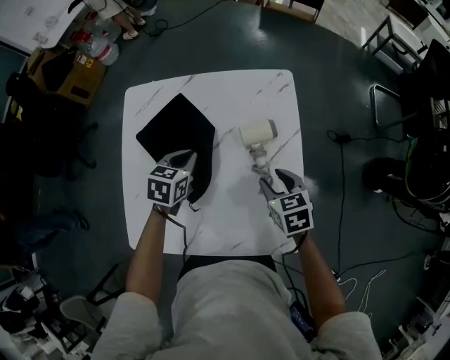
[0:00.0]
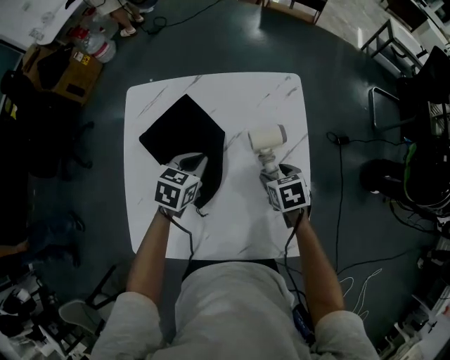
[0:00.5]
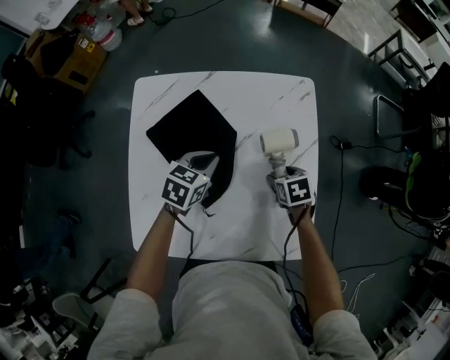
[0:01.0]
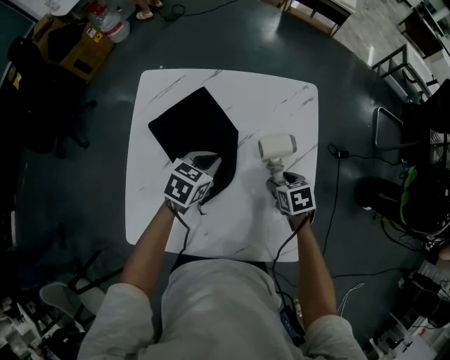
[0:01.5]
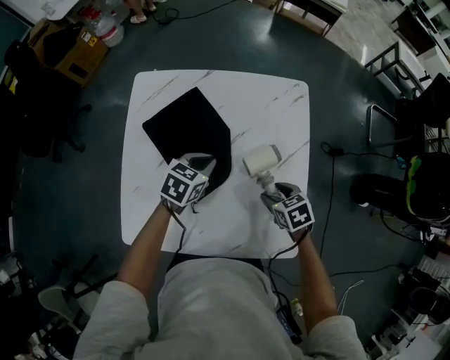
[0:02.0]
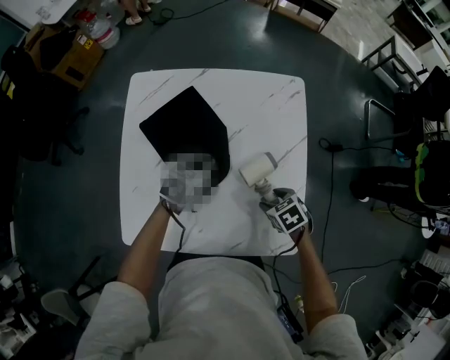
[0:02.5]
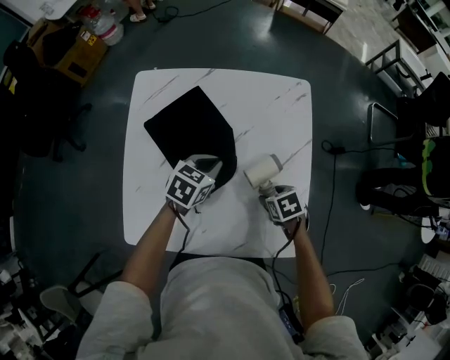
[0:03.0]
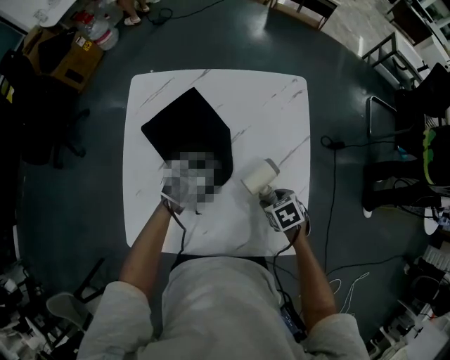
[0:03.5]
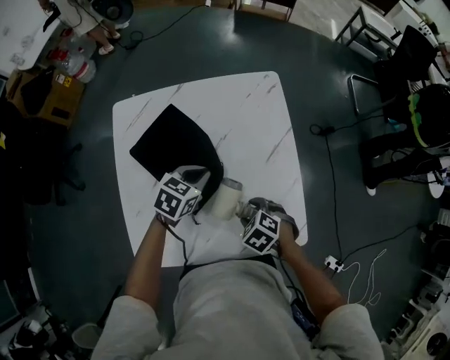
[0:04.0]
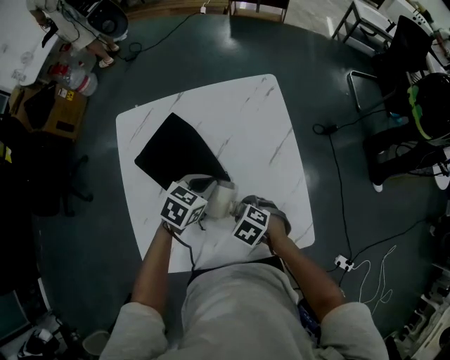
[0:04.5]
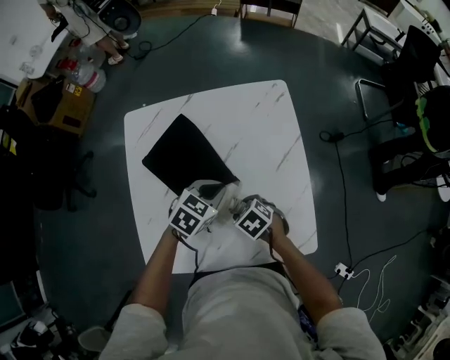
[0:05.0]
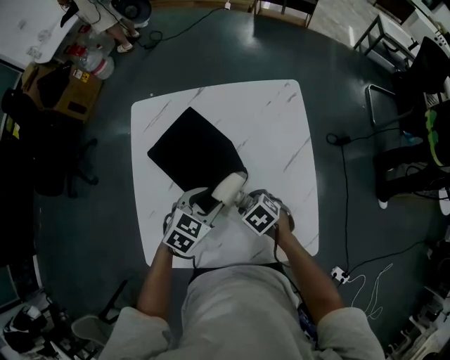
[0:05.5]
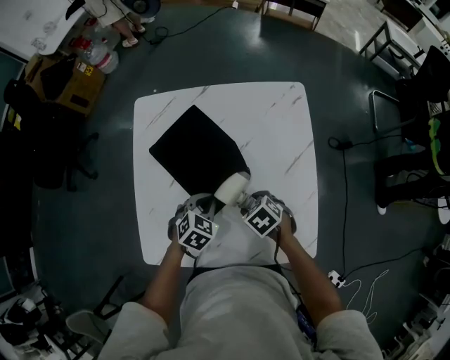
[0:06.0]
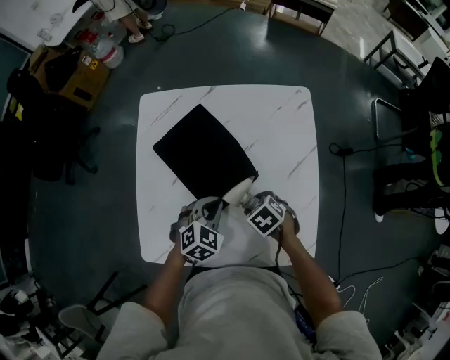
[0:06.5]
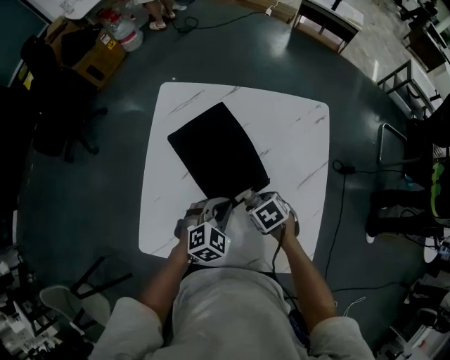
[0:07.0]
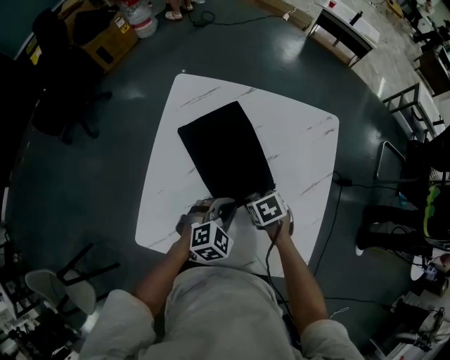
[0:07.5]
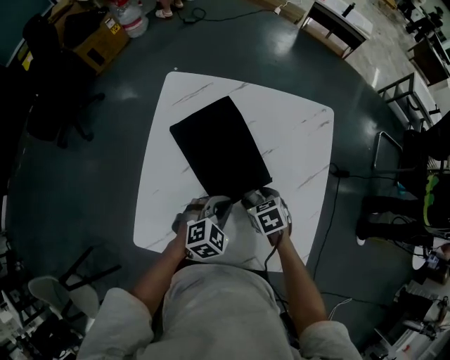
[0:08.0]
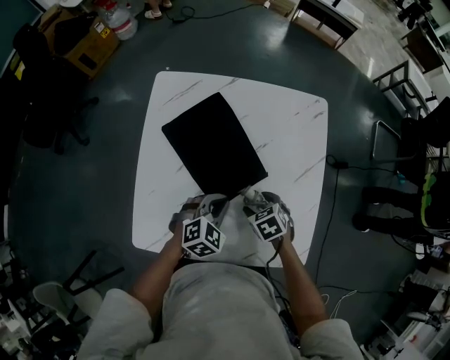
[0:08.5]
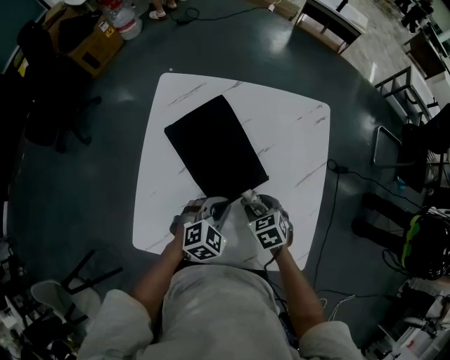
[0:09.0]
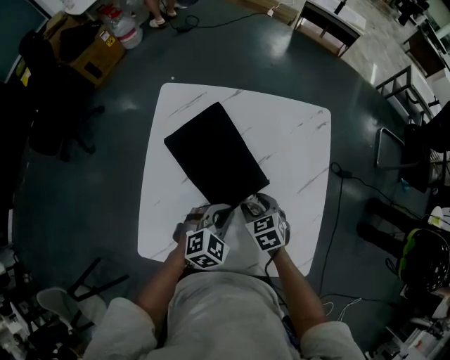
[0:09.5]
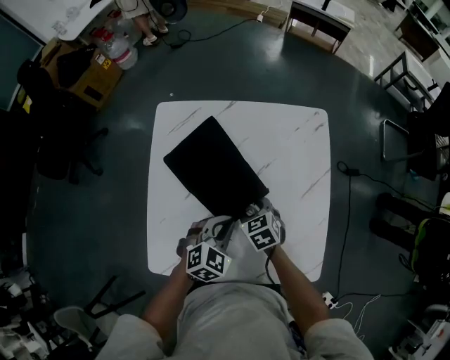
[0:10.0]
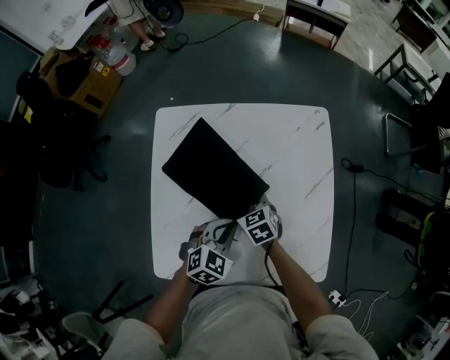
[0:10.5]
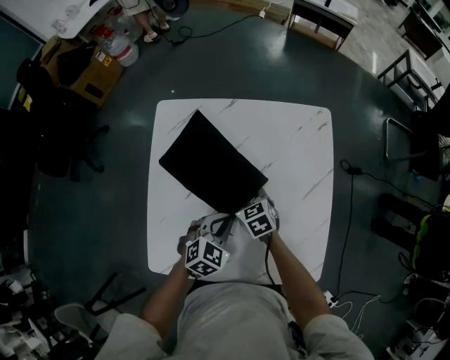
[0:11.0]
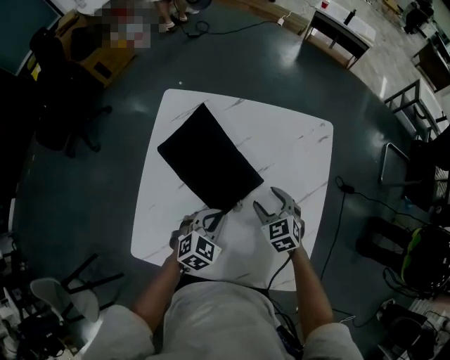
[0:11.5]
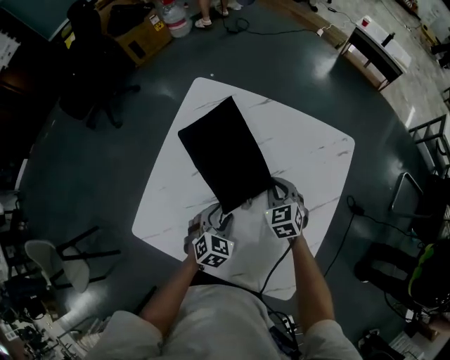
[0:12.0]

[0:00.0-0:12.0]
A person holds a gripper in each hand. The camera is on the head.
0:00.0 to 0:02.0: The right gripper shifts roughly 5 cm downward.
0:02.0 to 0:04.0: The right gripper moves to the left and backward, some 10 cm, and rotates some 20 degrees.
0:04.0 to 0:06.0: The left gripper ends up some 10 cm from where it was, changes its angle by some 20 degrees, and opens, then closes once more. Meanwhile the right gripper moves about 5 cm.
0:06.0 to 0:08.0: The right gripper shifts by approximately 5 cm.
0:08.0 to 0:10.0: The right gripper changes place by about 5 cm.
0:10.0 to 0:12.0: The right gripper travels forward and to the right by roughly 10 cm, swivels approximately 20 degrees, and closes up. Meanwhile the left gripper goes about 5 cm downward, turns by approximately 30 degrees, and opens its fingers.

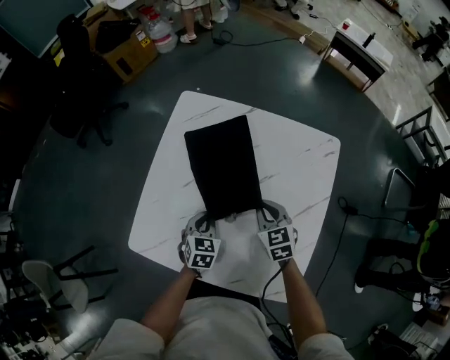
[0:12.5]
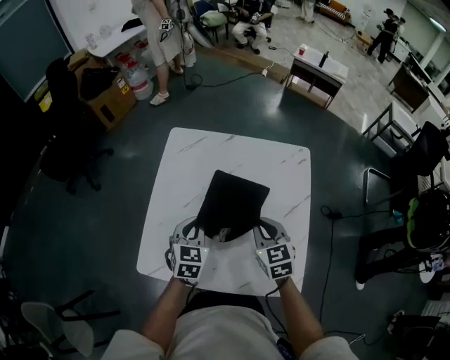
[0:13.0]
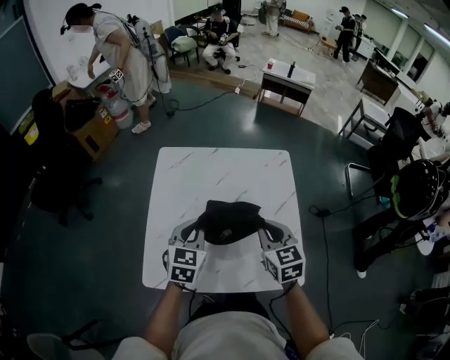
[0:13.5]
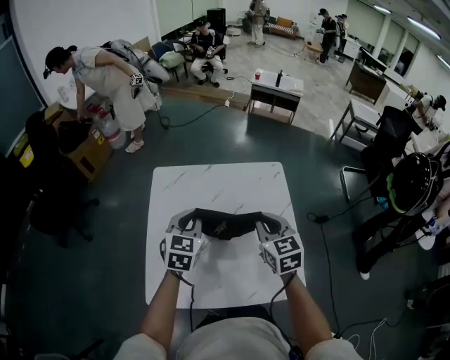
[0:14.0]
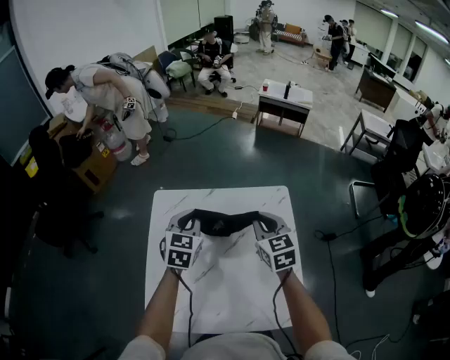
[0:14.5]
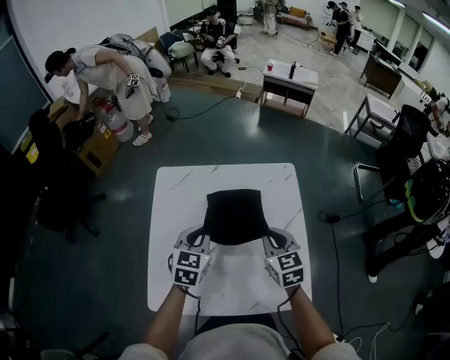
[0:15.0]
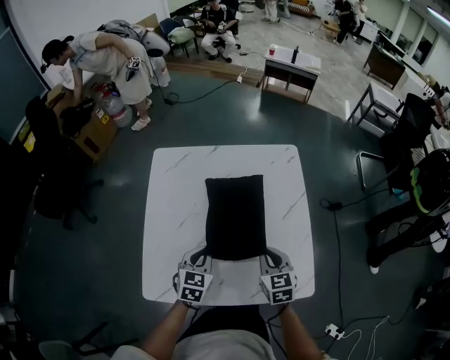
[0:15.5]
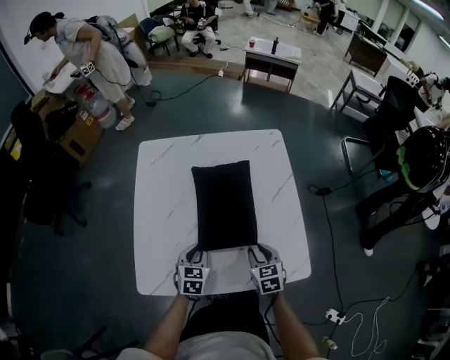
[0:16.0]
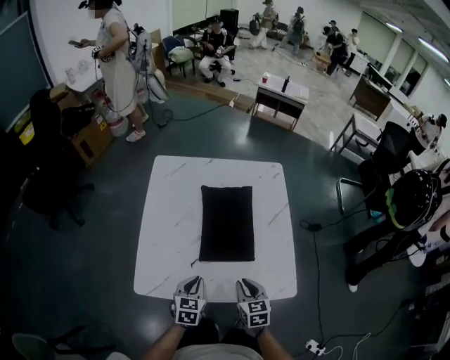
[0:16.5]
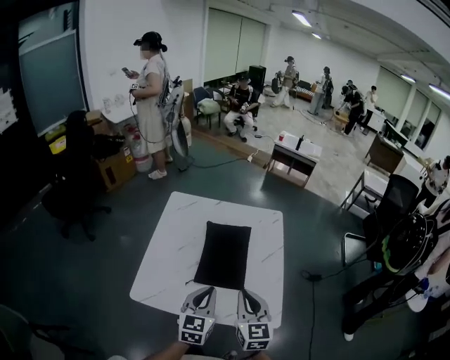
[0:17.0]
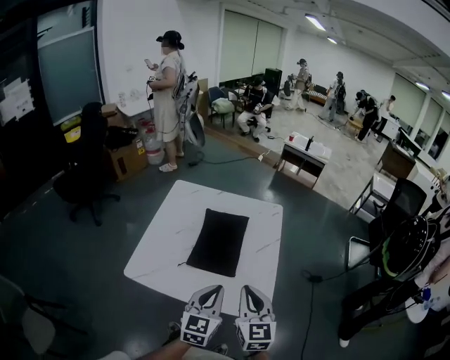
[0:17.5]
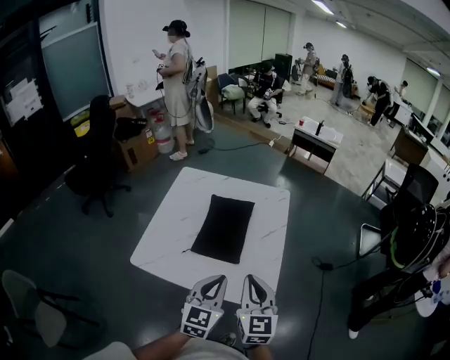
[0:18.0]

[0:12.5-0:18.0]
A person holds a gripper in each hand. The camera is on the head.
0:12.5 to 0:14.5: The grippers both shift upward by roughly 25 cm. The left gripper turns by some 30 degrees. Meanwhile the right gripper turns by roughly 30 degrees.
0:14.5 to 0:16.0: Both grippers travel together backward and downward, about 35 cm. The right gripper swivels about 20 degrees.
0:16.0 to 0:18.0: The right gripper shifts approximately 30 cm upward, and tips its fingers upward by some 30 degrees; the left gripper travels upward, backward and to the right by about 35 cm, and swivels about 30 degrees.

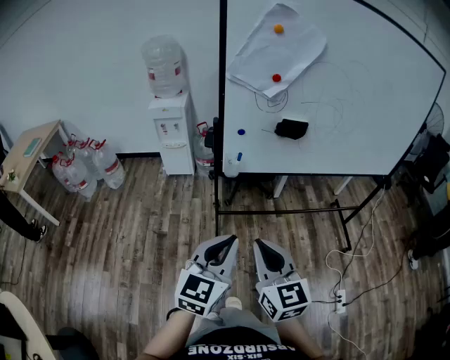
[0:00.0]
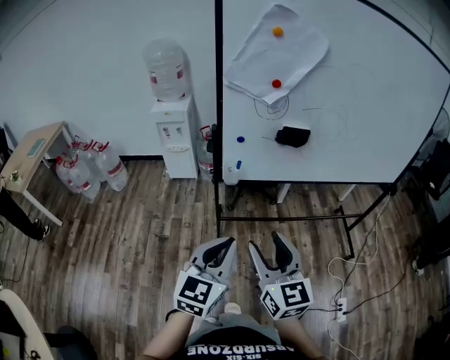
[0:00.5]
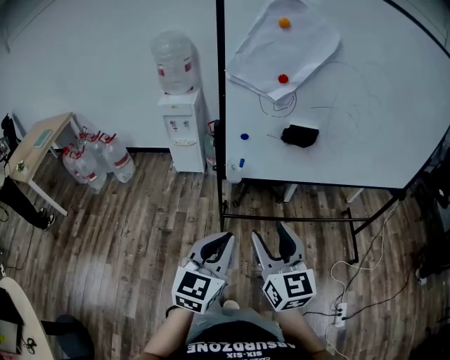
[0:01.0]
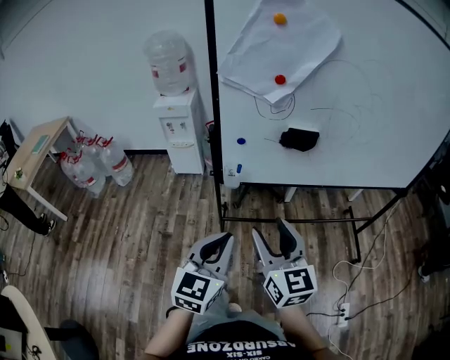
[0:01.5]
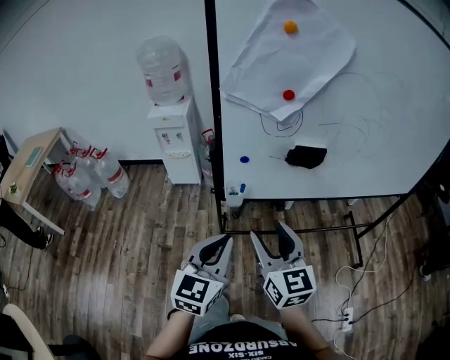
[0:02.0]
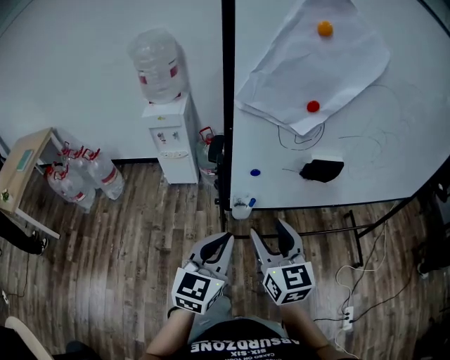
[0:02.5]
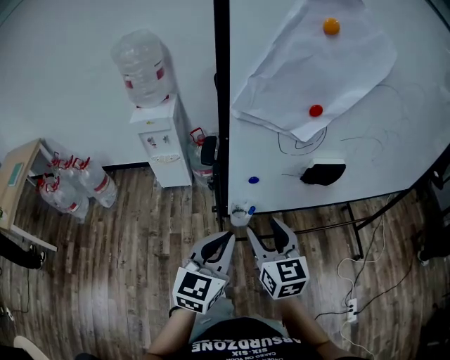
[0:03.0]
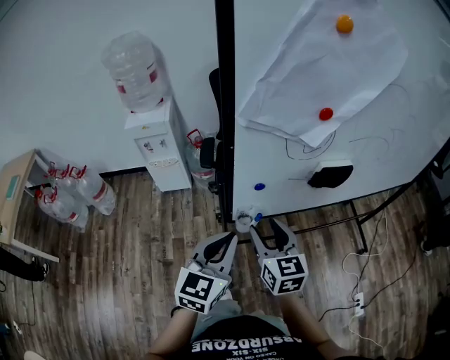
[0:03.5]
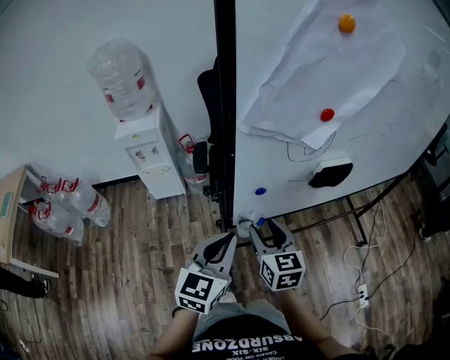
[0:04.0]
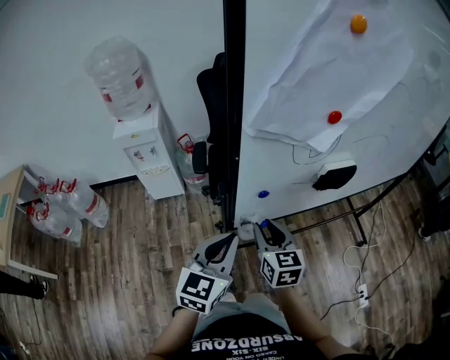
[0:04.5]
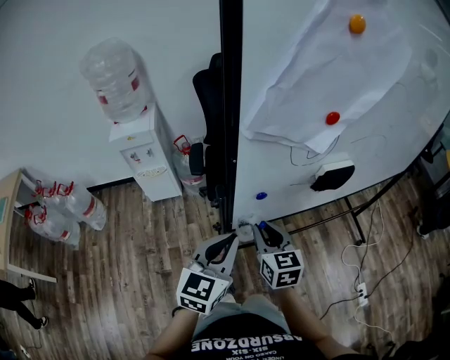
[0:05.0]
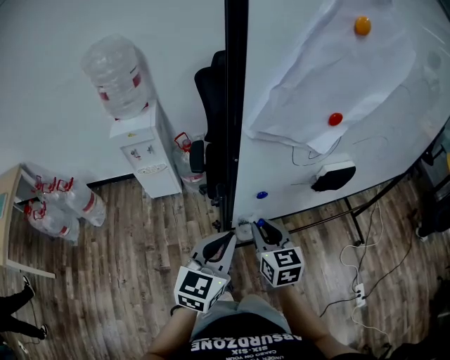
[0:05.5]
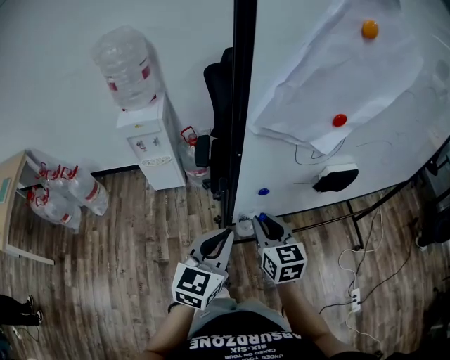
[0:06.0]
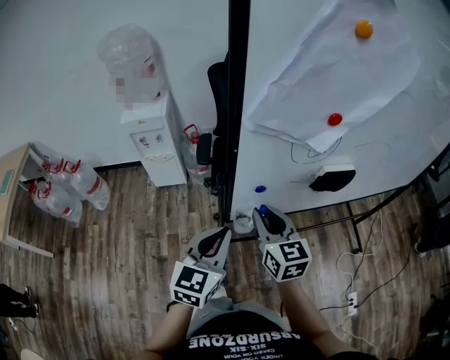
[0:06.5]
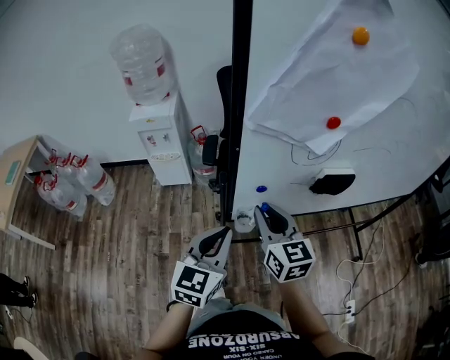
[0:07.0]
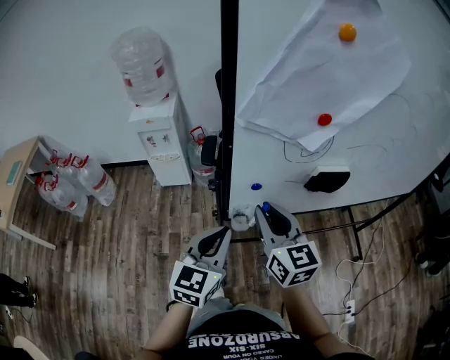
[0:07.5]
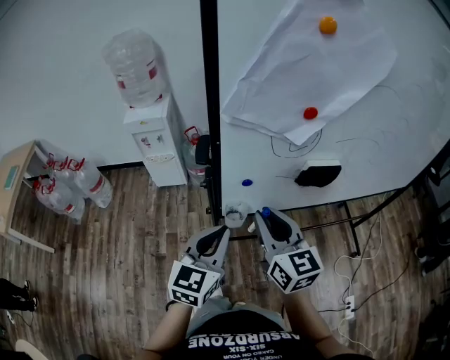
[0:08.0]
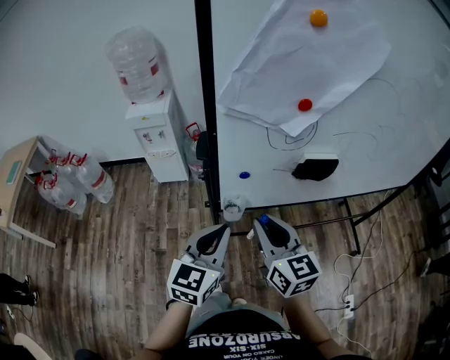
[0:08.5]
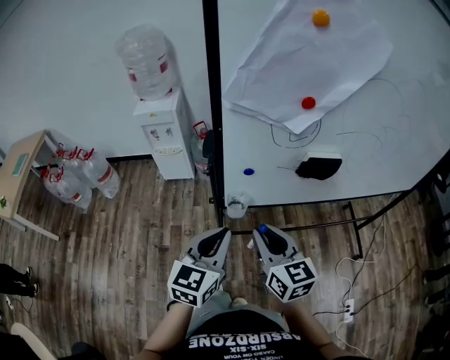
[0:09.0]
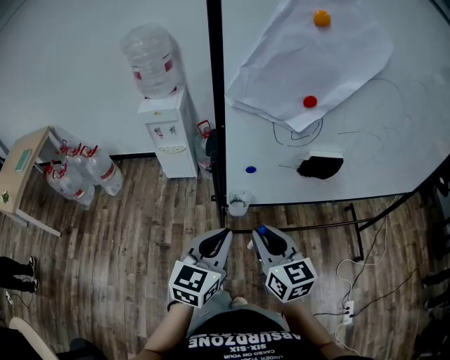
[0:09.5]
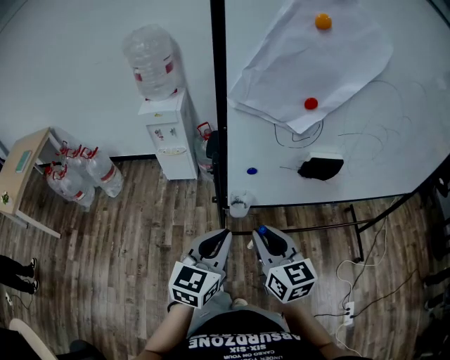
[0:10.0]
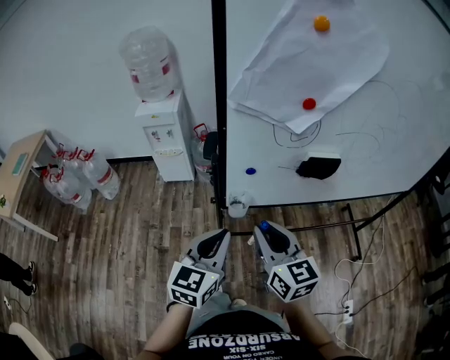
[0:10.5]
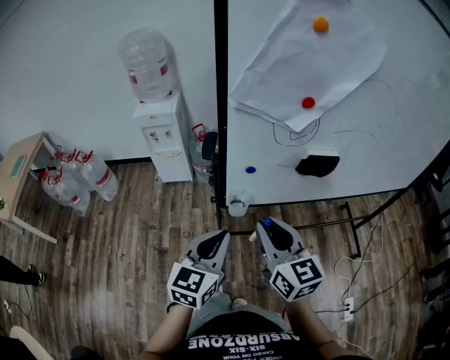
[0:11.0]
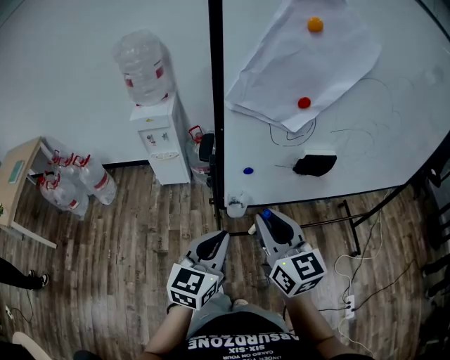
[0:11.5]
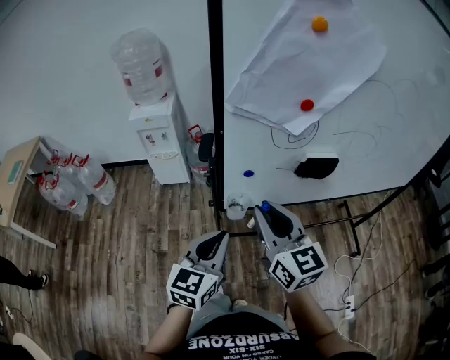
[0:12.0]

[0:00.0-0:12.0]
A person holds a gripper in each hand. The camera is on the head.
0:00.0 to 0:02.0: Both grippers move forward, approximately 20 cm. The right gripper opens its fingers.
0:02.0 to 0:04.0: The left gripper goes about 20 cm forward and to the left; the right gripper goes about 20 cm forward, downward and to the left, and rotates some 20 degrees.
0:04.0 to 0:06.0: The right gripper closes its fingers.
0:06.0 to 0:08.0: The left gripper shifts by roughly 5 cm; the right gripper heads upward and backward, covering some 10 cm.
0:08.0 to 0:10.0: The left gripper is displaced backward by roughly 5 cm, while the right gripper is displaced backward and downward by about 10 cm.
0:10.0 to 0:12.0: The right gripper is displaced upward by about 10 cm.
